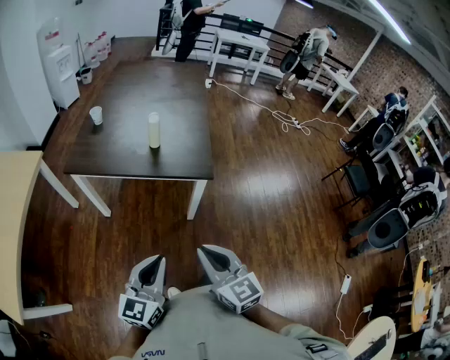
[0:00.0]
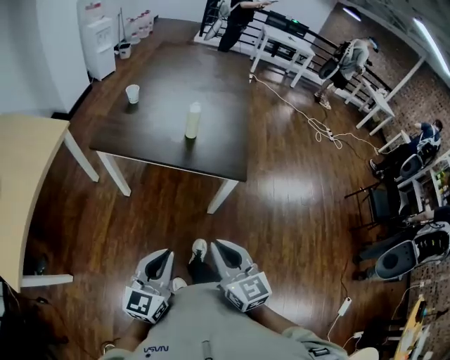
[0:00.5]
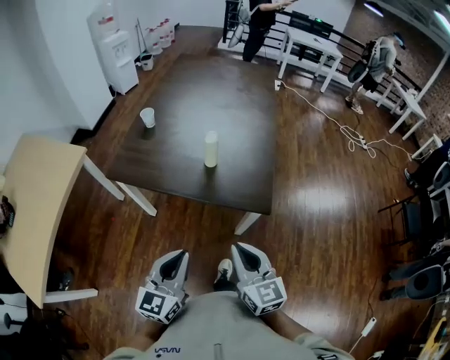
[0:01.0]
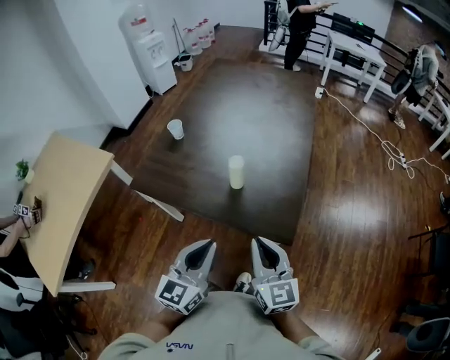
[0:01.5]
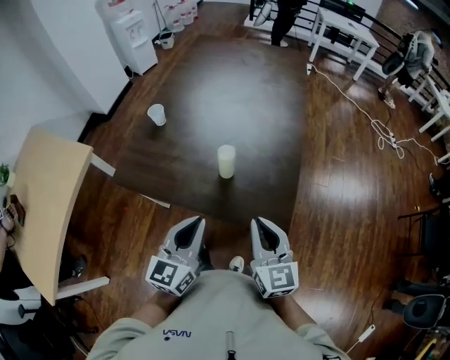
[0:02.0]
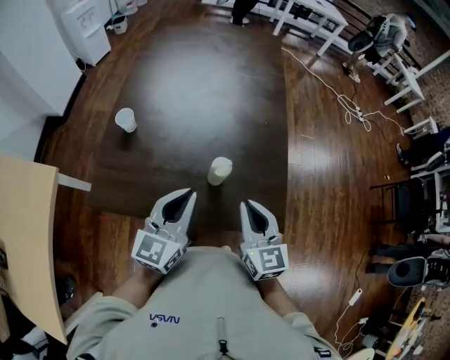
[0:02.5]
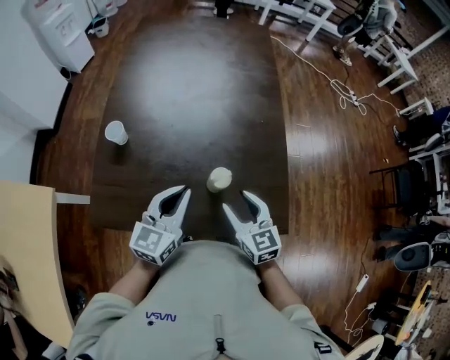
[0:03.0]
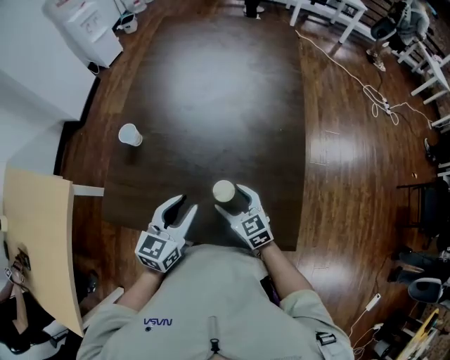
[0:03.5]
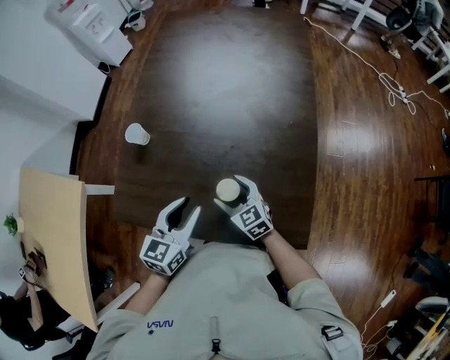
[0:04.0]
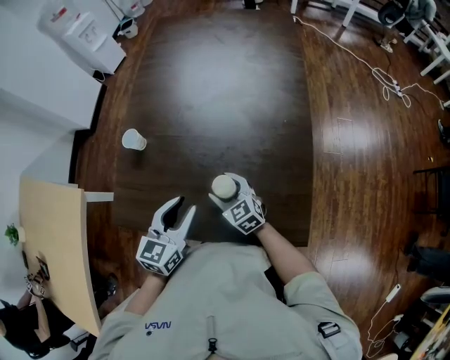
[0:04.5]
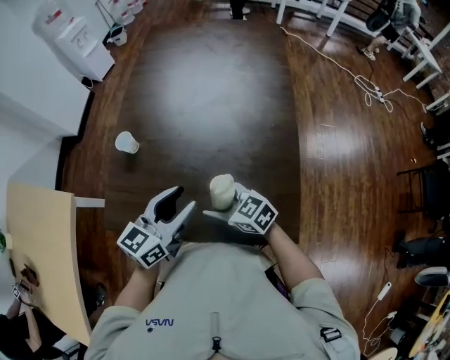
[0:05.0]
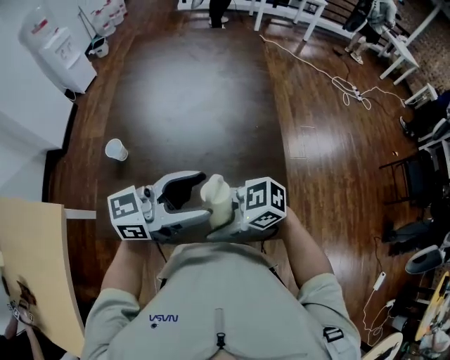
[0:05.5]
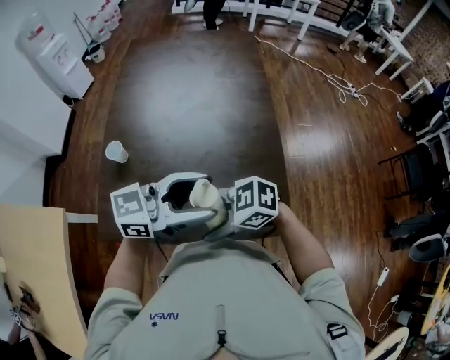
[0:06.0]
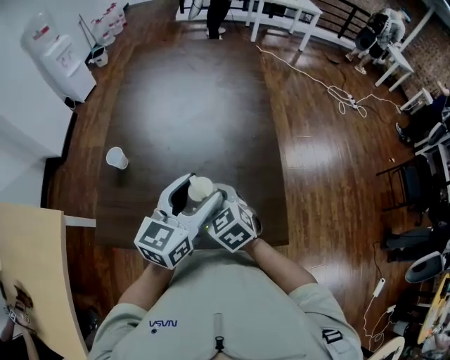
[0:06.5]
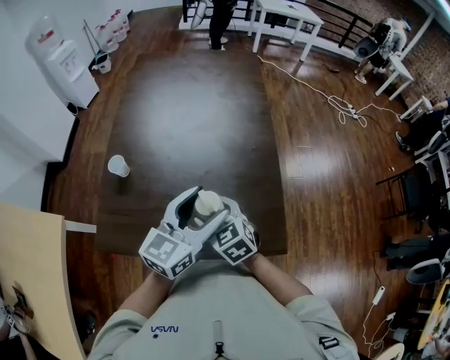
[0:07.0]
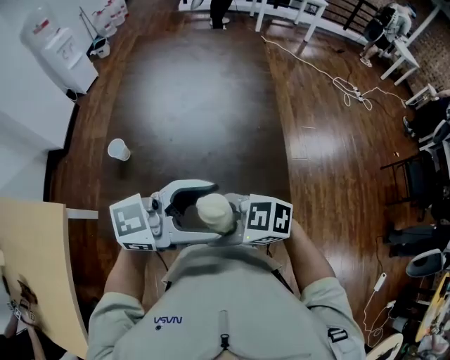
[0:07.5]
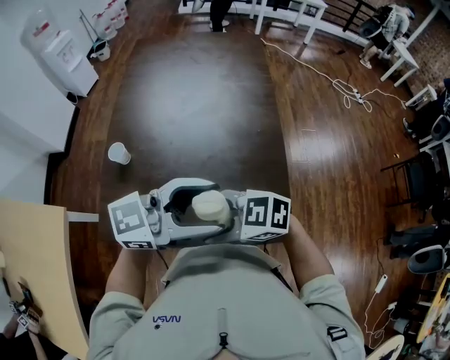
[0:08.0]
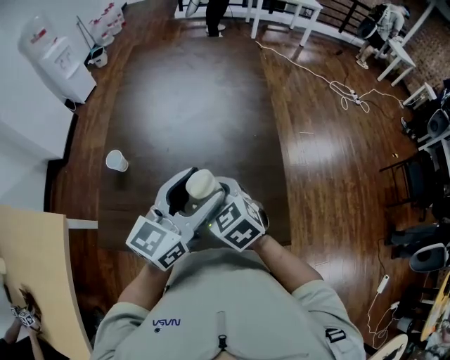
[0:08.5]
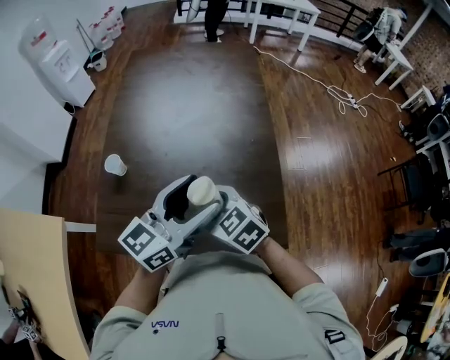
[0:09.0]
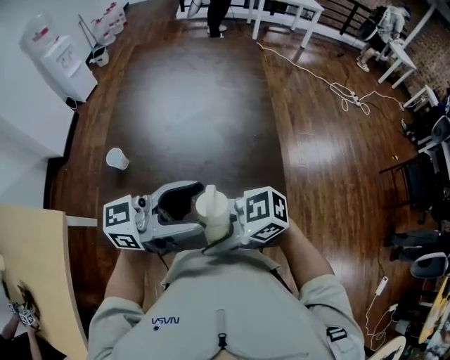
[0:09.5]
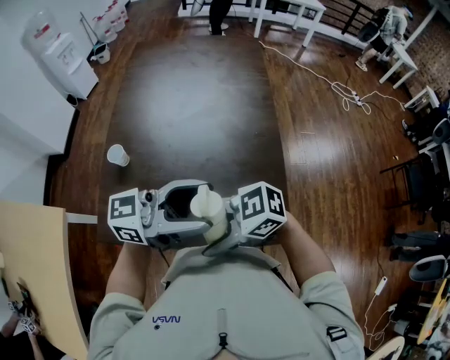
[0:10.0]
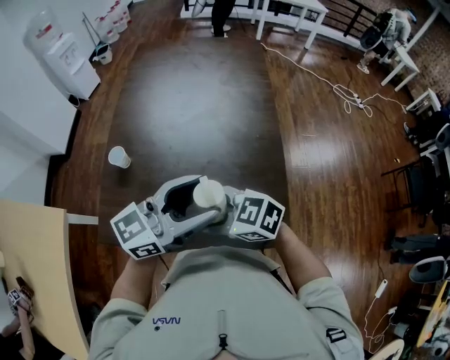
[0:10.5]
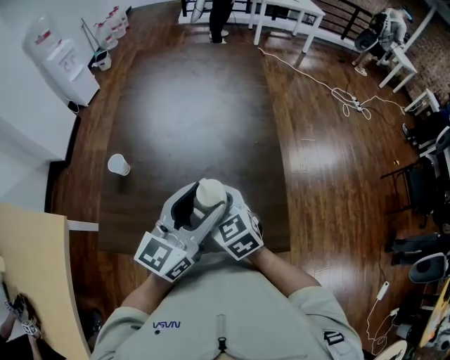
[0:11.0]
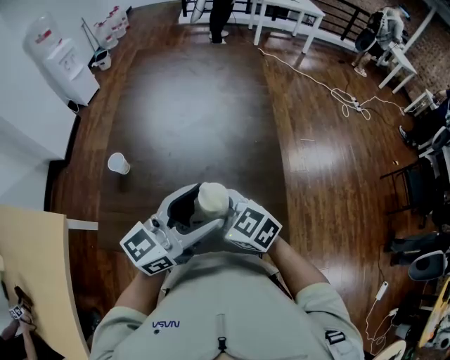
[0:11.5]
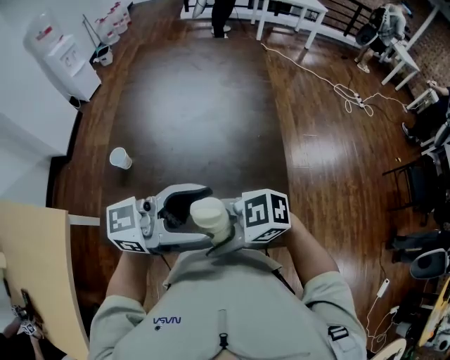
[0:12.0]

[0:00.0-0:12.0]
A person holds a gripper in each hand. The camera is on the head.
0:00.0 to 0:02.0: Both grippers travel together forward, some 30 cm.
0:02.0 to 0:04.0: The right gripper heads downward, forward and to the left, covering about 30 cm, changes its angle by roughly 30 degrees, and opens; the left gripper heads forward, downward and to the left, covering about 15 cm, swivels some 20 degrees, and opens up.
0:04.0 to 0:06.0: Both grippers move upward, roughly 15 cm. The left gripper turns by about 60 degrees, and opens. Meanwhile the right gripper swivels roughly 50 degrees.

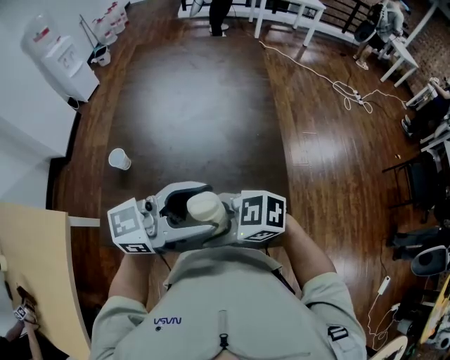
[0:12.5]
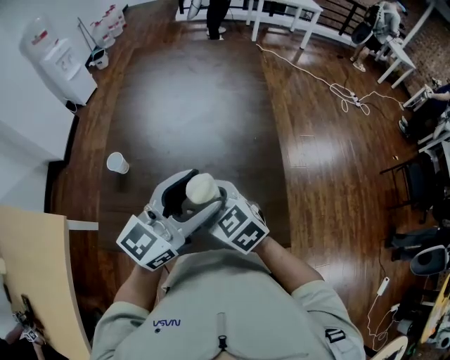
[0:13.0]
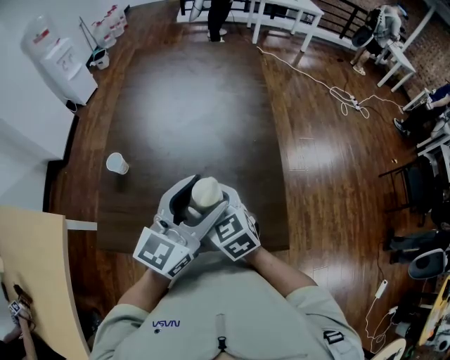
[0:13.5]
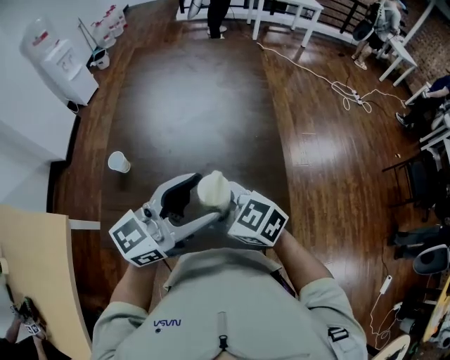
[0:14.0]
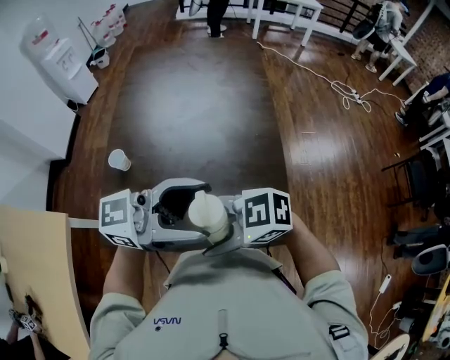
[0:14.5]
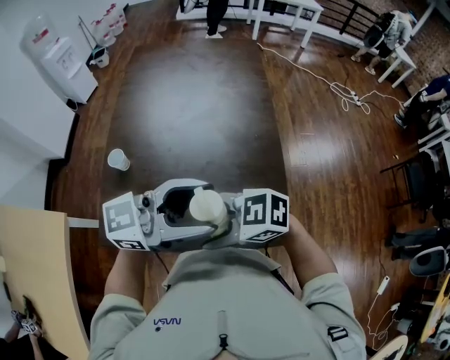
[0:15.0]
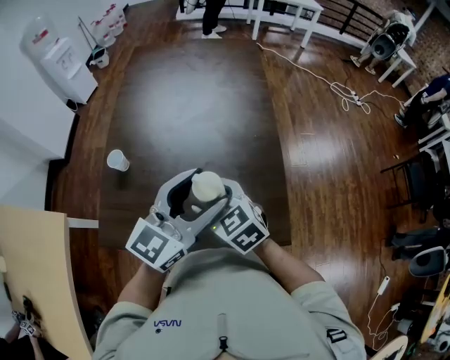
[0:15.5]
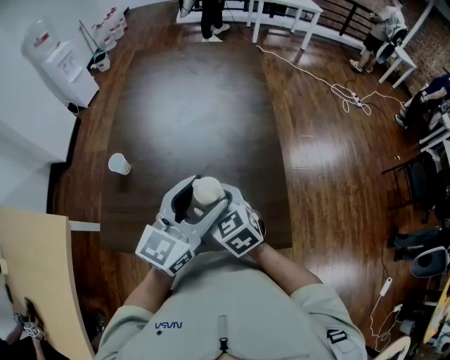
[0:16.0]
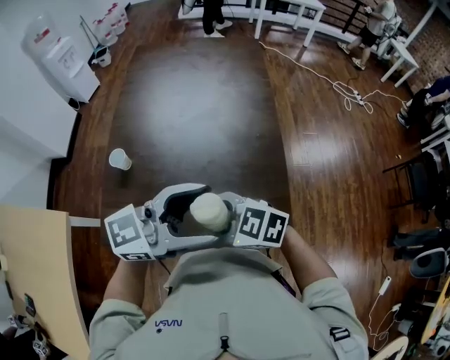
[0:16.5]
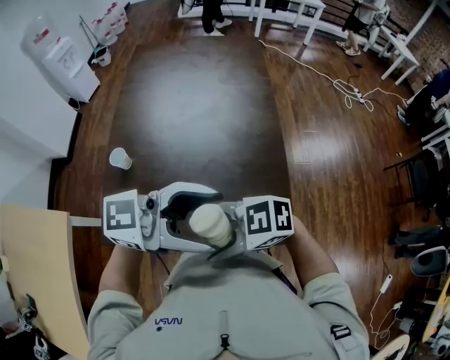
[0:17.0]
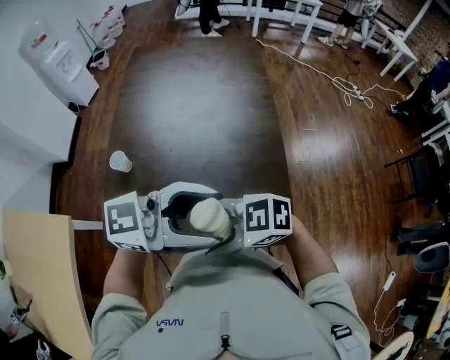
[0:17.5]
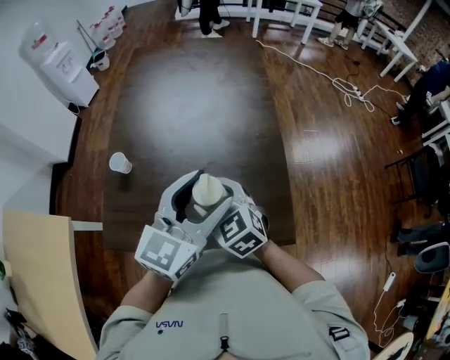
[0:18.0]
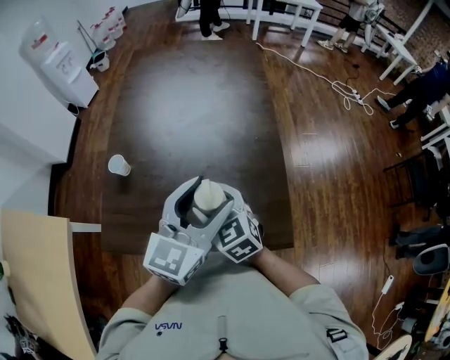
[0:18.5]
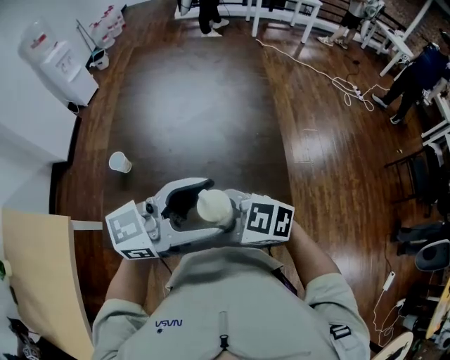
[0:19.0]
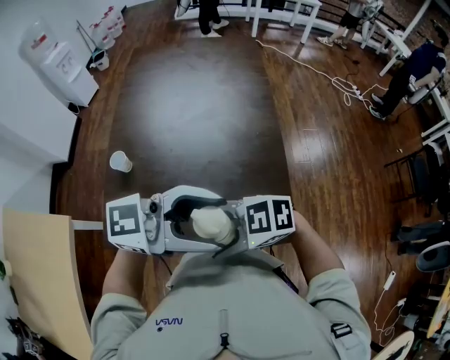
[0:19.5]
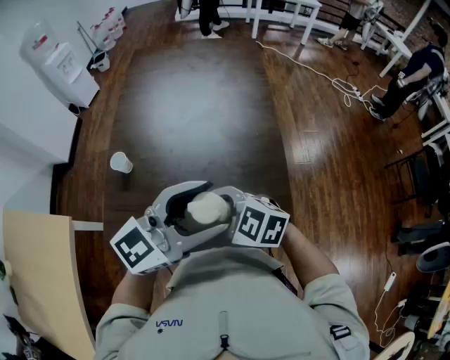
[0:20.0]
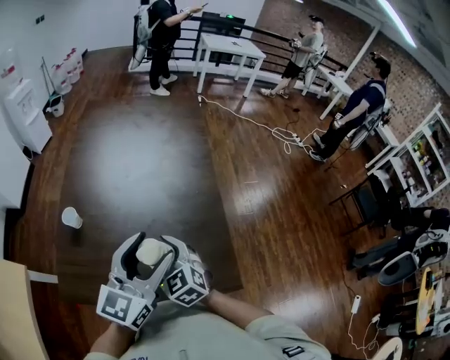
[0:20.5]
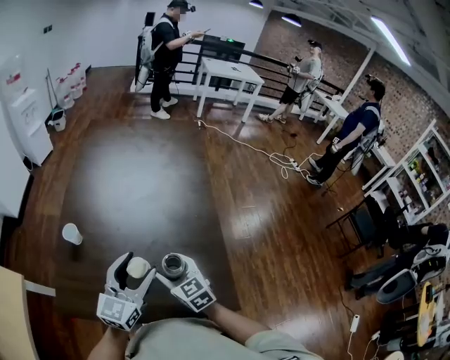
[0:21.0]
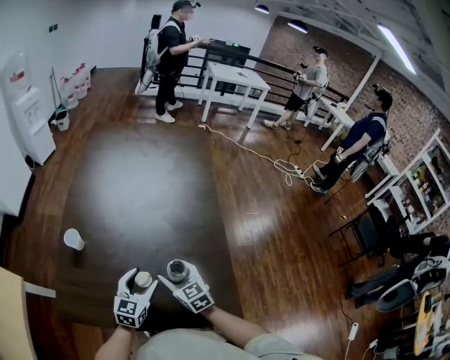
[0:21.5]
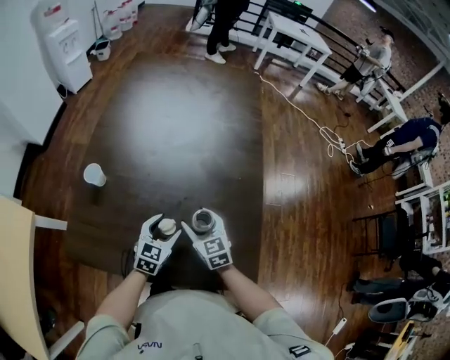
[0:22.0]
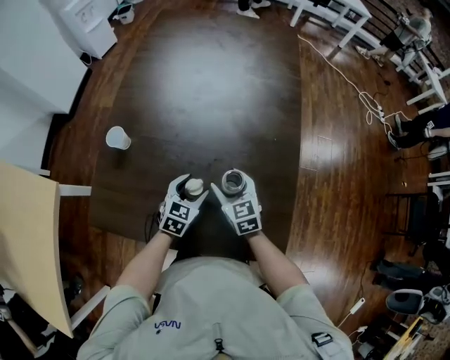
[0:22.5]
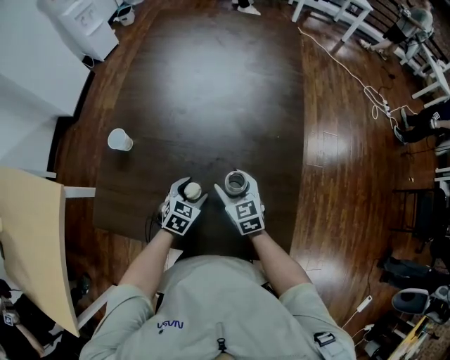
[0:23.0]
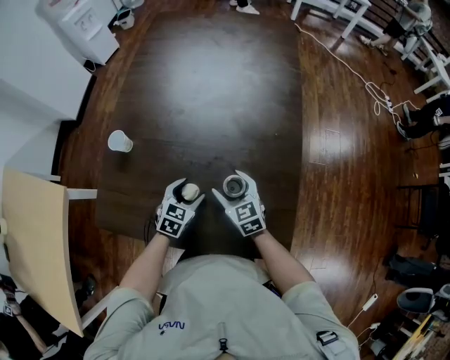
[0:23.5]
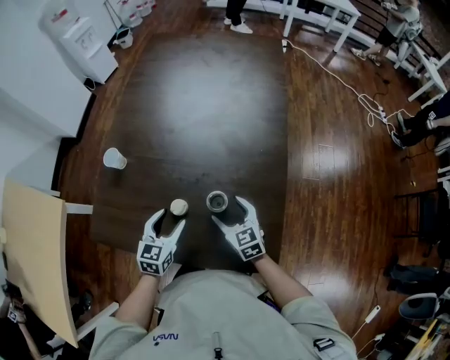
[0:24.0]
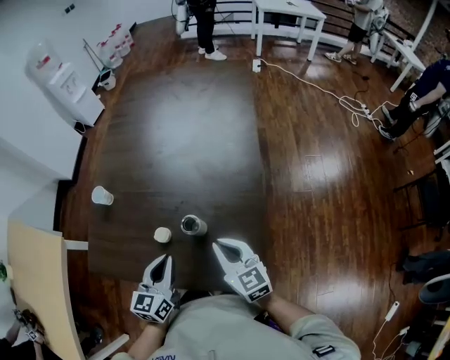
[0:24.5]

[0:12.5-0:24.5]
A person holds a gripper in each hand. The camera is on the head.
0:14.5 to 0:16.5: The right gripper changes its angle by about 20 degrees.
0:16.5 to 0:18.5: The left gripper shifts by roughly 5 cm, and changes its angle by approximately 40 degrees; the right gripper moves approximately 10 cm, and swivels roughly 40 degrees.
0:20.5 to 0:22.5: The right gripper moves downward and forward, some 15 cm. The left gripper shifts approximately 30 cm downward, and tilts its fingers some 40 degrees downward.
0:22.5 to 0:24.5: The left gripper goes approximately 15 cm upward and backward, turns by approximately 30 degrees, and closes, while the right gripper shifts about 15 cm backward, upward and to the right, and closes its fingers.

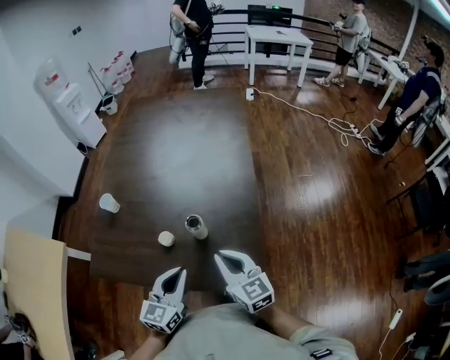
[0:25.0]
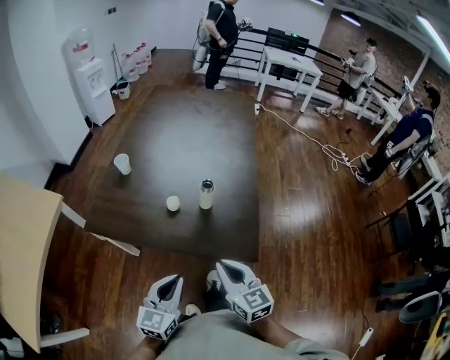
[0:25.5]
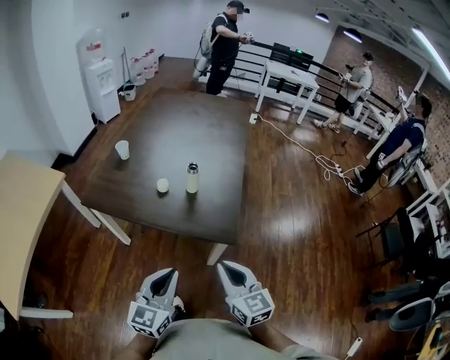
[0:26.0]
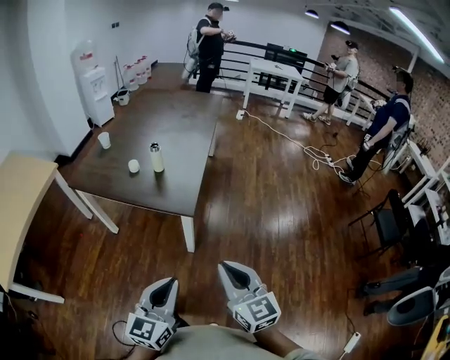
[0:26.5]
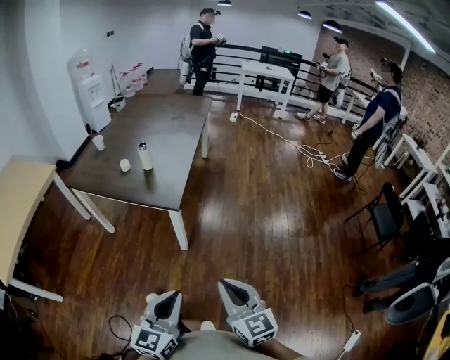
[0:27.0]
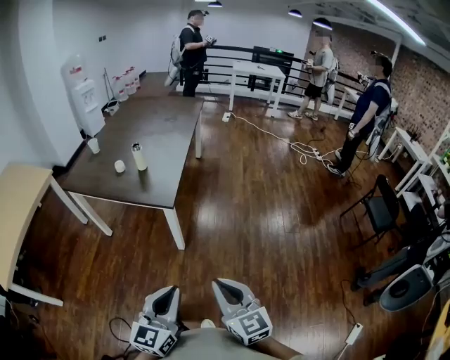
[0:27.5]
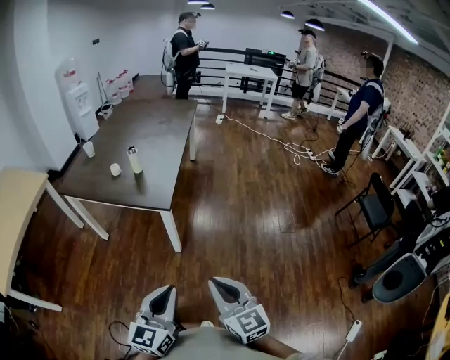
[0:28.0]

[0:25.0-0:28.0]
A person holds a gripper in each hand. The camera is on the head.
0:25.0 to 0:26.5: Both grippers move backward and to the right, approximately 40 cm.
0:26.5 to 0:28.0: The right gripper shifts about 10 cm backward; the left gripper travels backward and to the right by roughly 10 cm.
